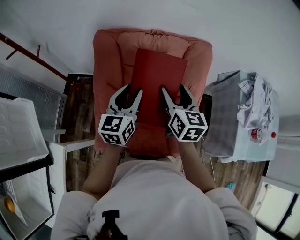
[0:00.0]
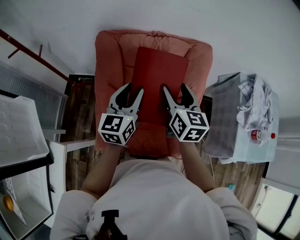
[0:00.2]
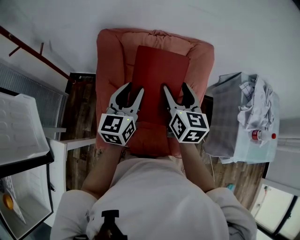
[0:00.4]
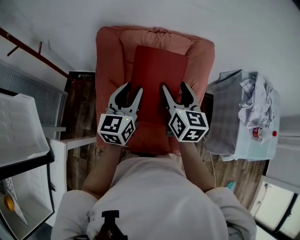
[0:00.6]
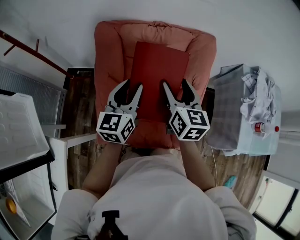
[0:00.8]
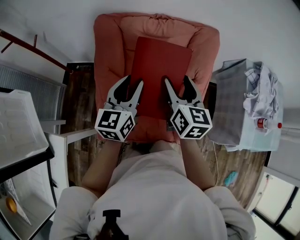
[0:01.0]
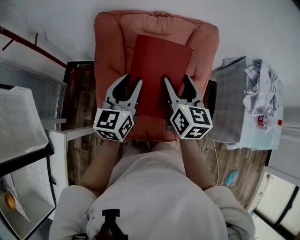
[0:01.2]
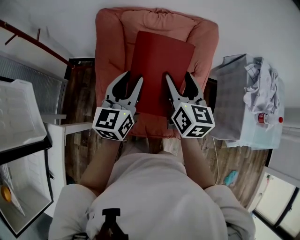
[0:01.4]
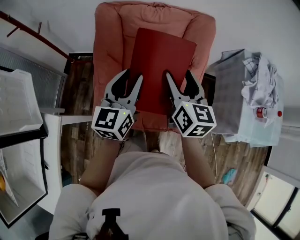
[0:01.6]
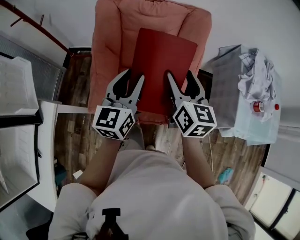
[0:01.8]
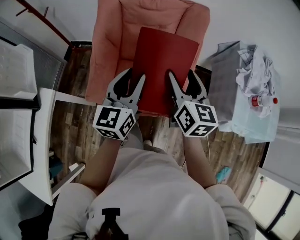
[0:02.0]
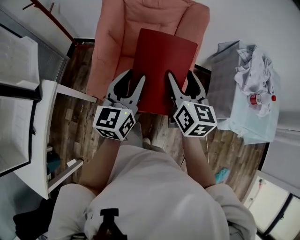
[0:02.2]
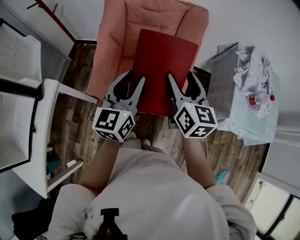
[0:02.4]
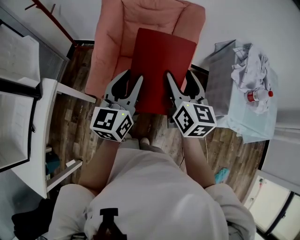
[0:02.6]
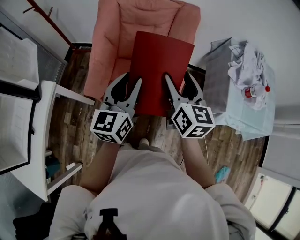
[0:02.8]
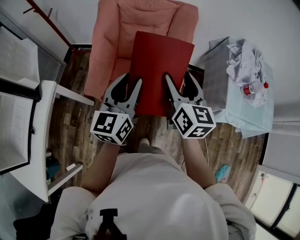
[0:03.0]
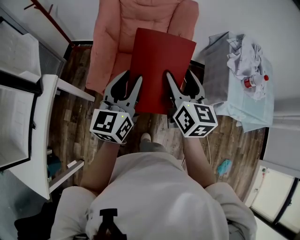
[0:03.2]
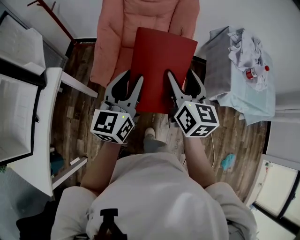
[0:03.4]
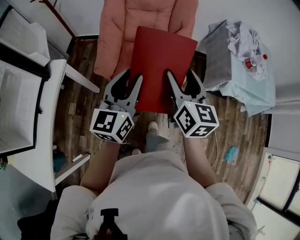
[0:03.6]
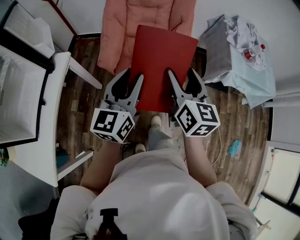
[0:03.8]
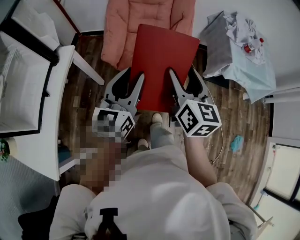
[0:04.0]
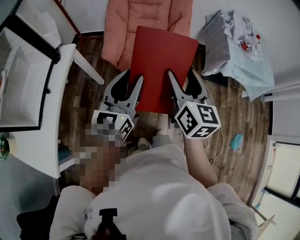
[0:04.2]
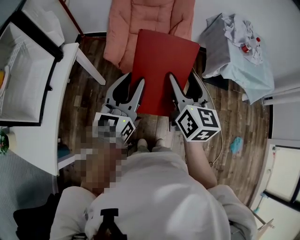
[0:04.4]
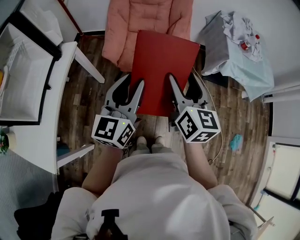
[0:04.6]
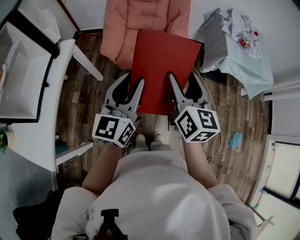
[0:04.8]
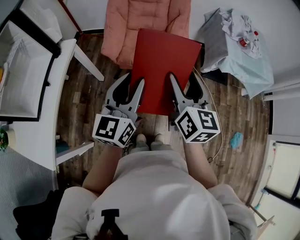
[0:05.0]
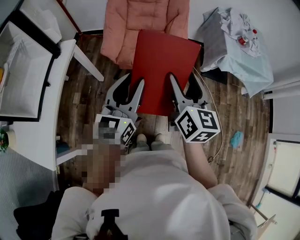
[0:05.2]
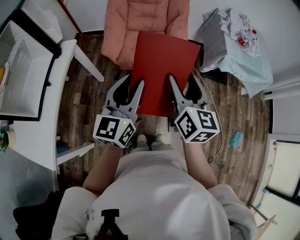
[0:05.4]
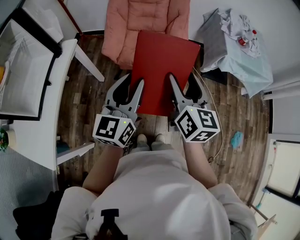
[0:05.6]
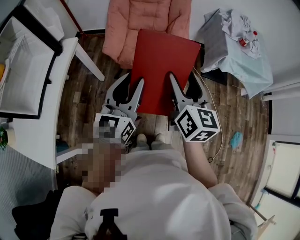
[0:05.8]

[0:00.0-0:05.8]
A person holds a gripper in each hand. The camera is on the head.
0:00.0 to 0:01.4: Both grippers move backward, about 5 cm.
0:01.4 to 0:02.8: The right gripper heads backward and to the right, covering some 25 cm; the left gripper goes approximately 25 cm backward.
0:02.8 to 0:04.4: Both grippers move backward, some 35 cm.
0:04.4 to 0:05.8: The grippers move only a little.

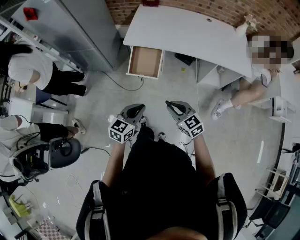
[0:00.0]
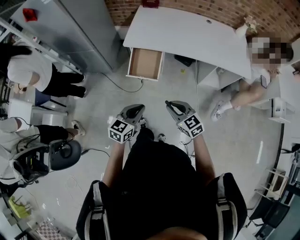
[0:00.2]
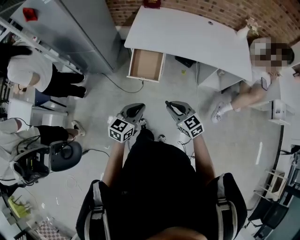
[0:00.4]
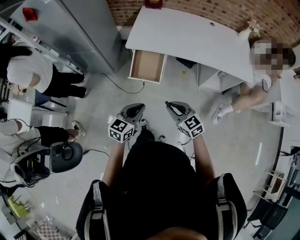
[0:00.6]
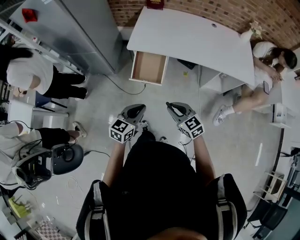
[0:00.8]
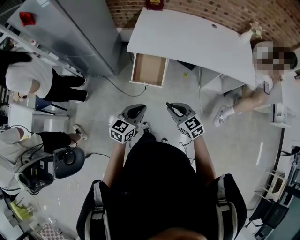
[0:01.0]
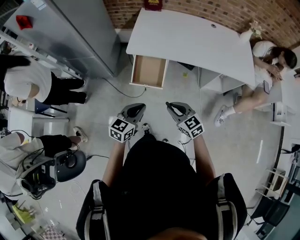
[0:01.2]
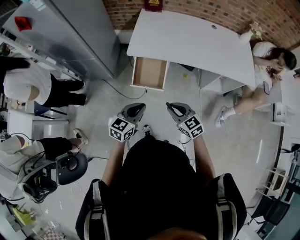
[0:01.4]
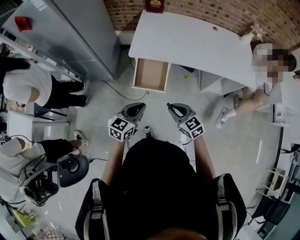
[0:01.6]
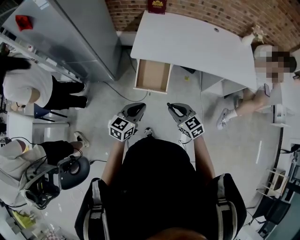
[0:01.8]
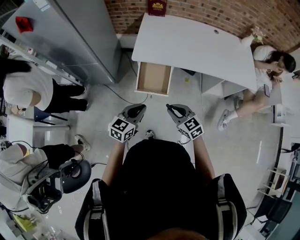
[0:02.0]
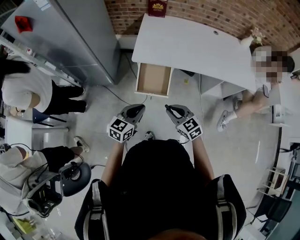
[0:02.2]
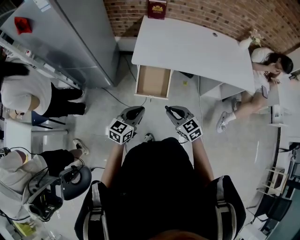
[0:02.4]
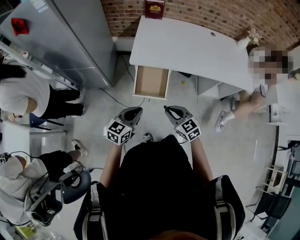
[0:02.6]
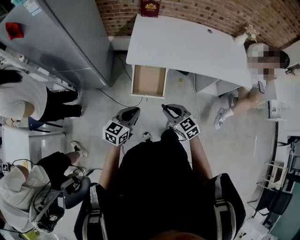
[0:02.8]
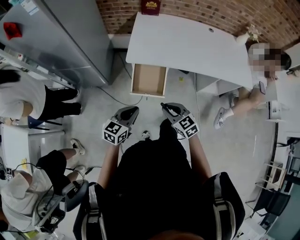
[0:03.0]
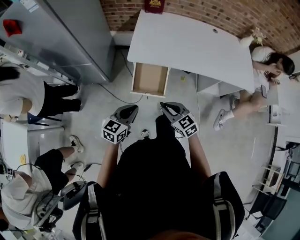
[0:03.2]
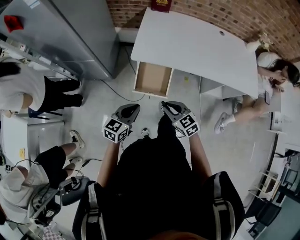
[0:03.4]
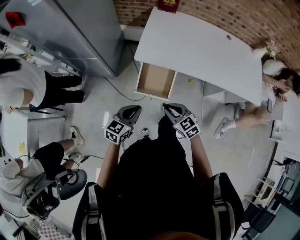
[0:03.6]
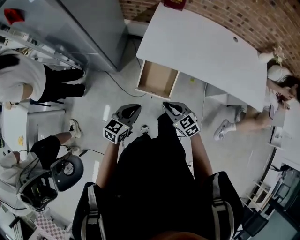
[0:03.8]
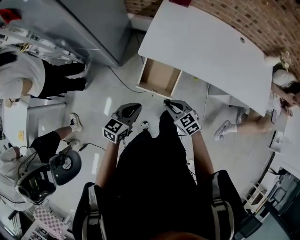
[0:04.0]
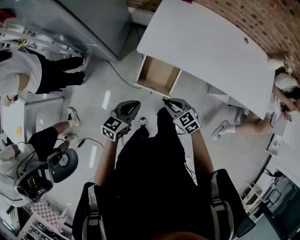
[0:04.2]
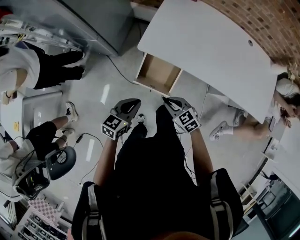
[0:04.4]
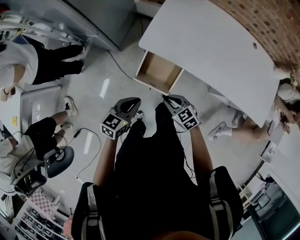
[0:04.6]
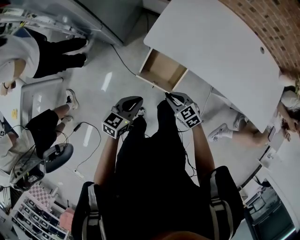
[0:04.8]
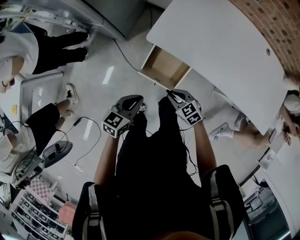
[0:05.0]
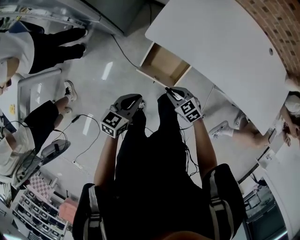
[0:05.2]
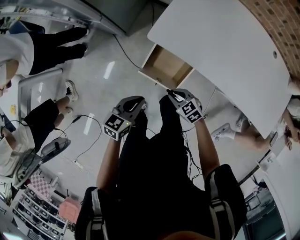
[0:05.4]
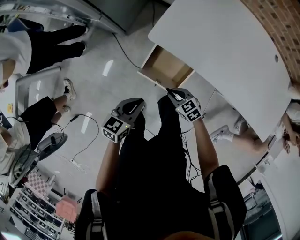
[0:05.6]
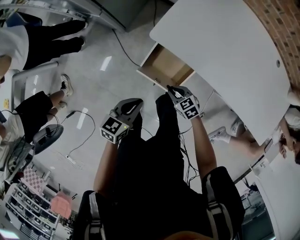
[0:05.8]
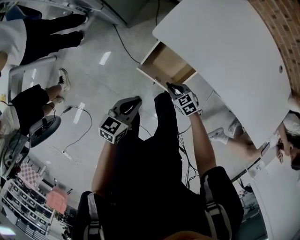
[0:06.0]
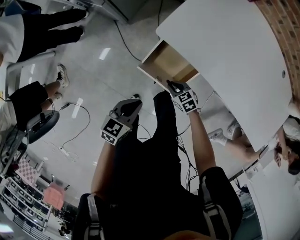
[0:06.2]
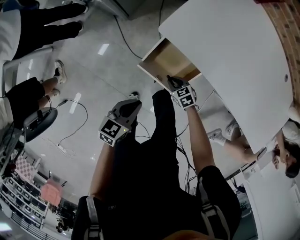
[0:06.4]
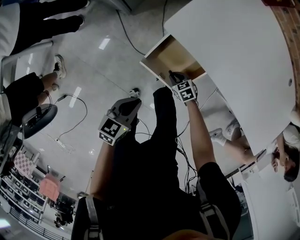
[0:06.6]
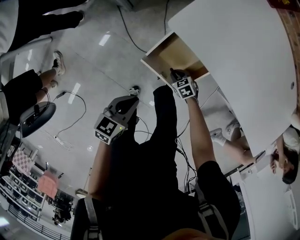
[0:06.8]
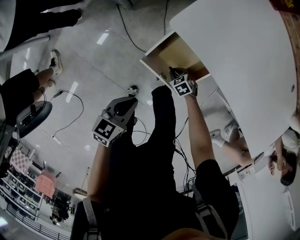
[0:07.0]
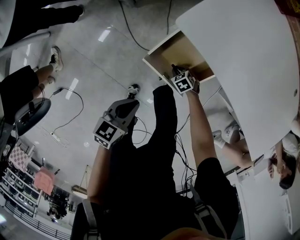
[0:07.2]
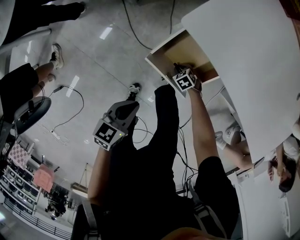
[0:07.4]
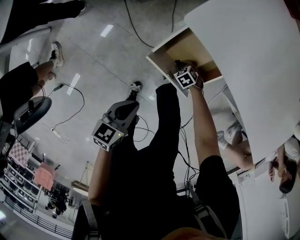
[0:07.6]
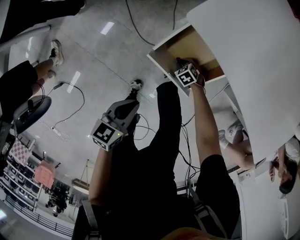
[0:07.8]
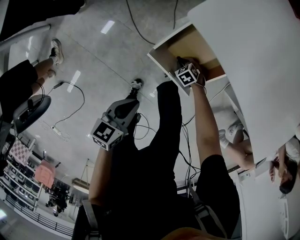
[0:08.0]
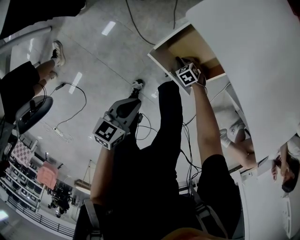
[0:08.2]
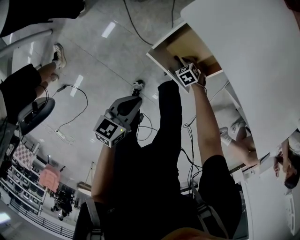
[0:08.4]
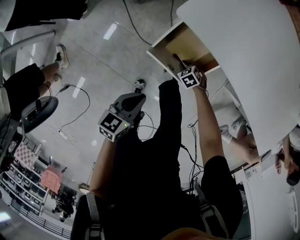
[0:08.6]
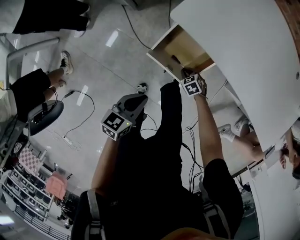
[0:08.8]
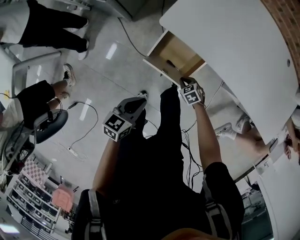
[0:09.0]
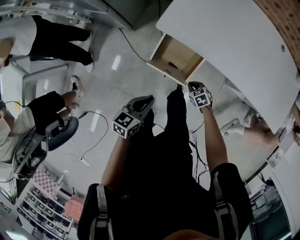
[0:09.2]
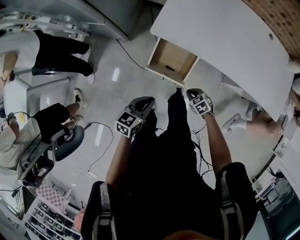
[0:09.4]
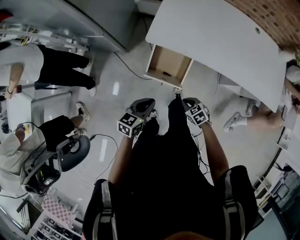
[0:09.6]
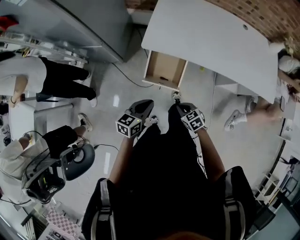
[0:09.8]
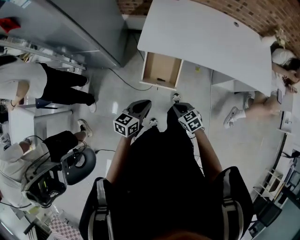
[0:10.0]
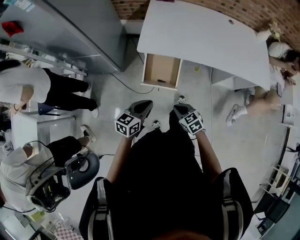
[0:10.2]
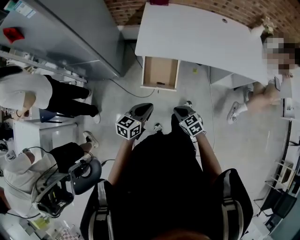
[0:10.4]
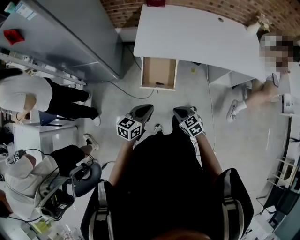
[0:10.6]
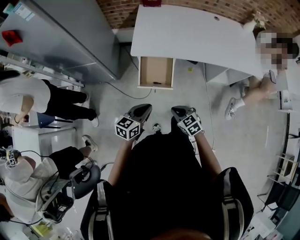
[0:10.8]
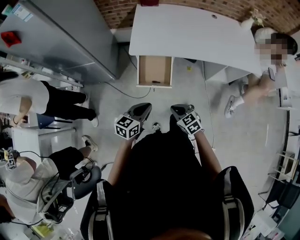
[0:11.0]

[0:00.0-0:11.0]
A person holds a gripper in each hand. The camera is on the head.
0:00.0 to 0:01.6: The two grippers go approximately 15 cm forward and to the left.
0:01.6 to 0:03.2: The left gripper travels to the left and forward by some 10 cm, while the right gripper heads forward and to the left, covering approximately 10 cm.
0:03.2 to 0:04.8: The right gripper travels downward and forward by approximately 20 cm, and swivels roughly 30 degrees, while the left gripper goes some 10 cm forward and downward.
0:04.8 to 0:06.2: The left gripper goes some 10 cm downward, while the right gripper goes some 20 cm downward.
0:06.2 to 0:07.8: The right gripper travels downward by some 20 cm, and rotates approximately 30 degrees. Meanwhile the left gripper goes some 10 cm downward.
0:07.8 to 0:09.4: The left gripper travels upward by some 15 cm, and changes its angle by some 20 degrees. The right gripper moves upward, about 30 cm, and changes its angle by roughly 30 degrees.
0:09.4 to 0:11.0: The left gripper shifts some 15 cm backward and upward, and rotates about 20 degrees, while the right gripper shifts roughly 25 cm upward, backward and to the left, and rotates roughly 30 degrees.

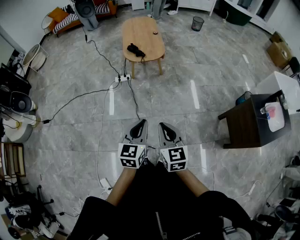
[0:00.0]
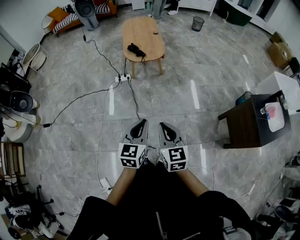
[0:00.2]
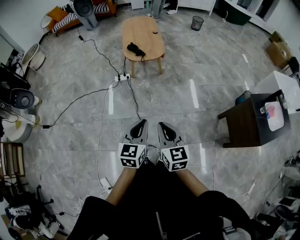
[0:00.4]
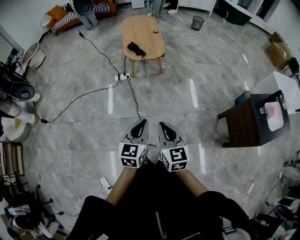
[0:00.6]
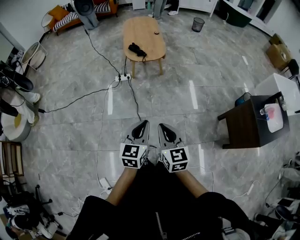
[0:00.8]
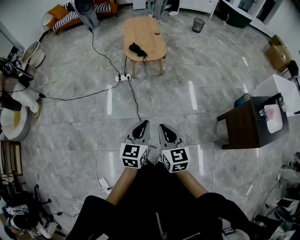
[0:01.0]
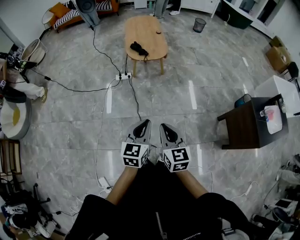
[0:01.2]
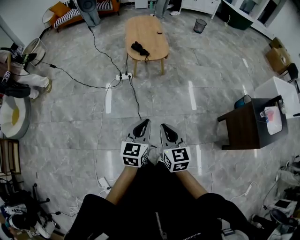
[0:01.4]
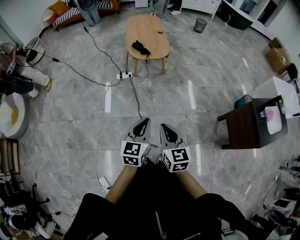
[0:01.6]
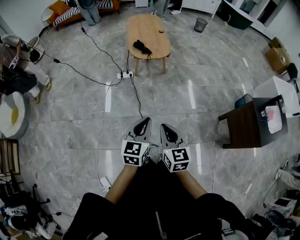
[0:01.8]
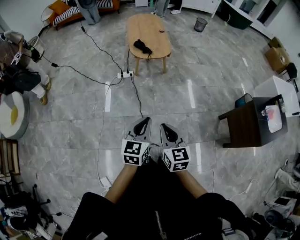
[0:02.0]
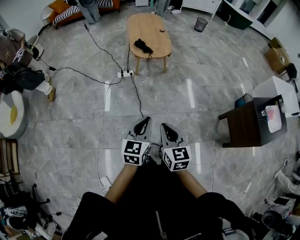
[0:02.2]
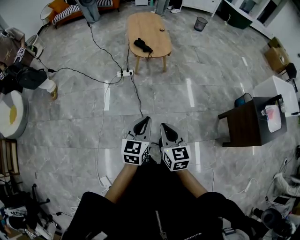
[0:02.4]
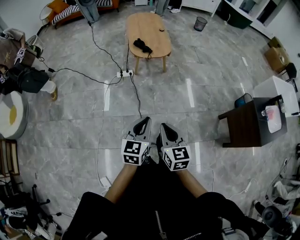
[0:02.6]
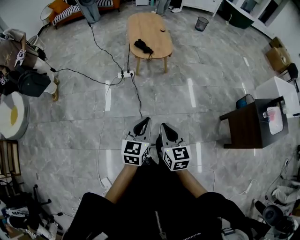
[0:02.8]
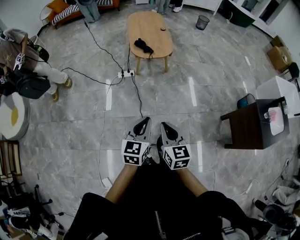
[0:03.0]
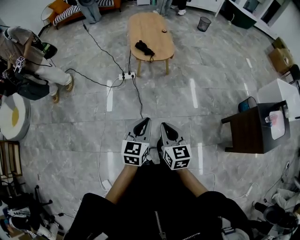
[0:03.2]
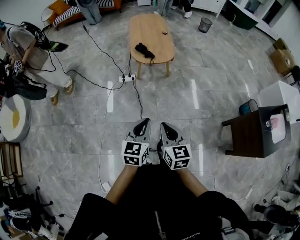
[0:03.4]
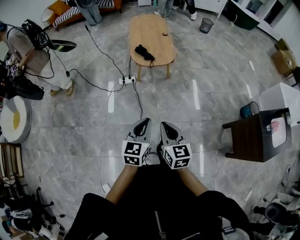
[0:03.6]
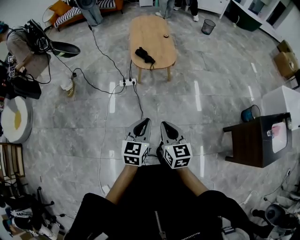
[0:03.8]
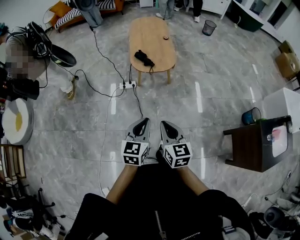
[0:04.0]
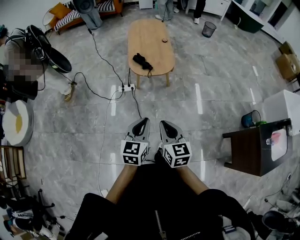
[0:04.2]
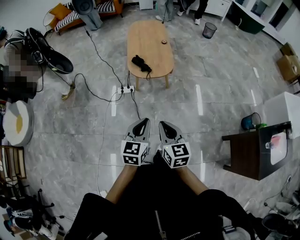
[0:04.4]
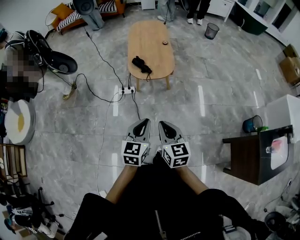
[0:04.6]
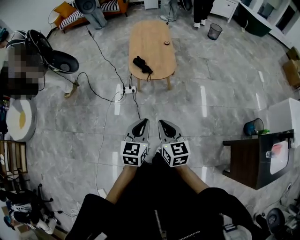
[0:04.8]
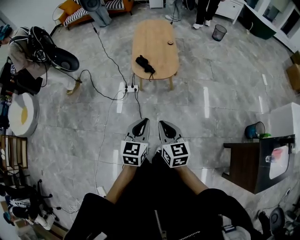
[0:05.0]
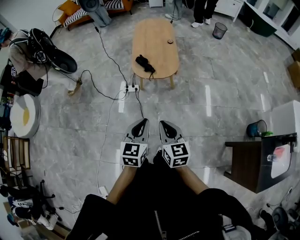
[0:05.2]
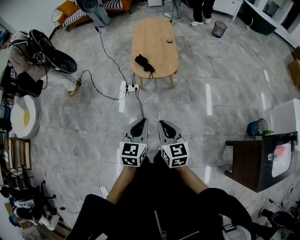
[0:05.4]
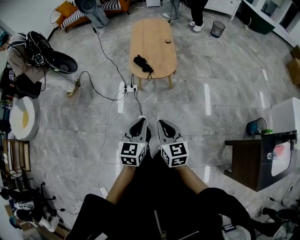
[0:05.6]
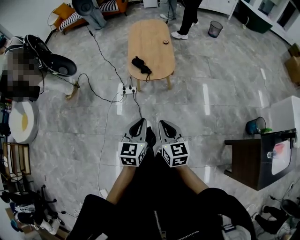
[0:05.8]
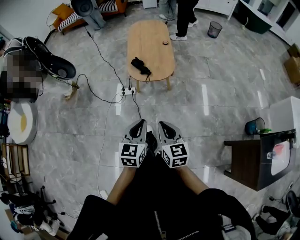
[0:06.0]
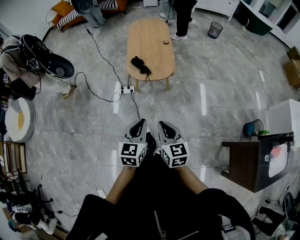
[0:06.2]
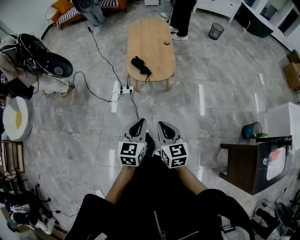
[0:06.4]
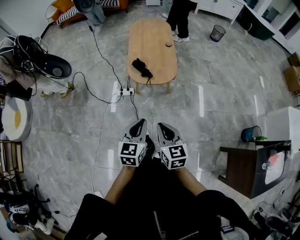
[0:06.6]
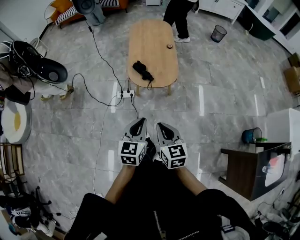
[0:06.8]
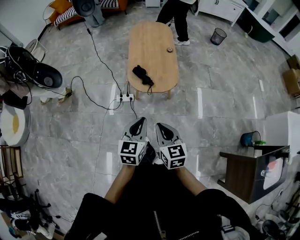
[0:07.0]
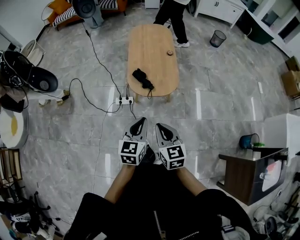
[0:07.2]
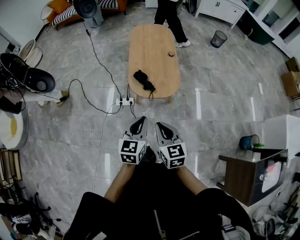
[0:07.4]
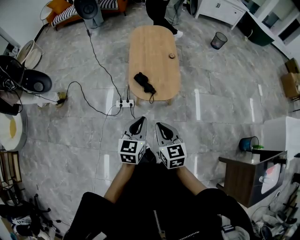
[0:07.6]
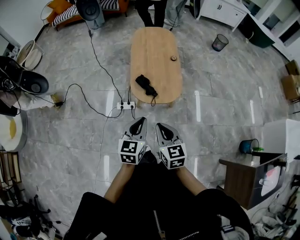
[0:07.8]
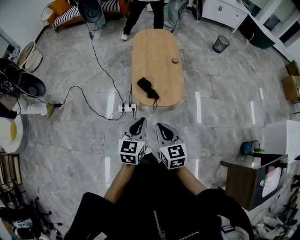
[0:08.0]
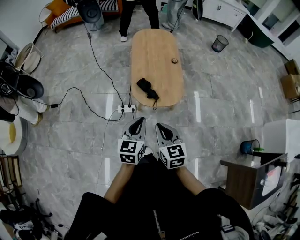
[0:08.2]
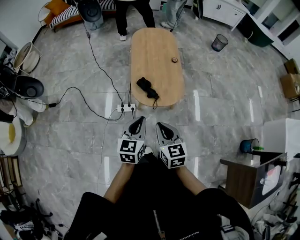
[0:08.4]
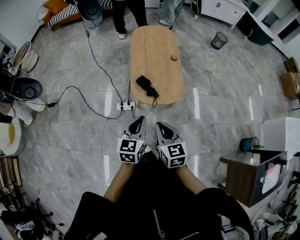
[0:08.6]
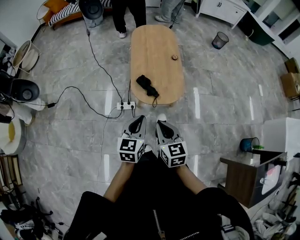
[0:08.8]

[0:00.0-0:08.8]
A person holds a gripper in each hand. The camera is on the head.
0:00.0 to 0:01.4: The grippers make only small movements.
0:01.4 to 0:03.0: The right gripper moves some 5 cm. Meanwhile the left gripper moves approximately 5 cm.
0:03.0 to 0:04.4: Both grippers move forward, about 20 cm.
0:04.4 to 0:05.8: The left gripper ends up roughly 5 cm from where it was; the right gripper changes place by about 5 cm.
0:05.8 to 0:07.4: Both grippers travel together forward, about 20 cm.
0:07.4 to 0:08.8: Both grippers travel together forward, some 5 cm.
